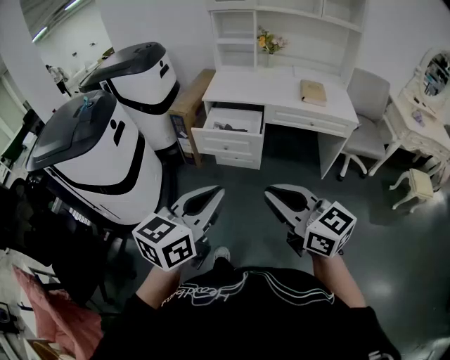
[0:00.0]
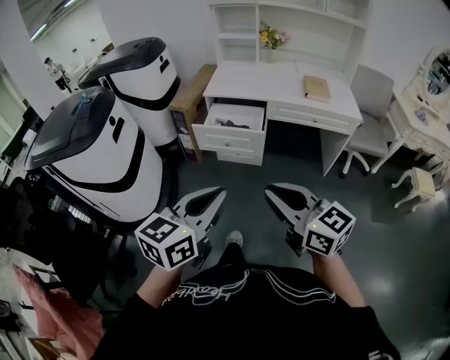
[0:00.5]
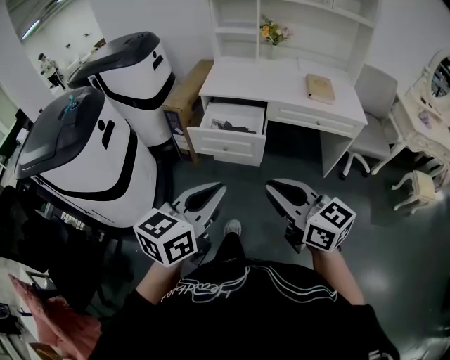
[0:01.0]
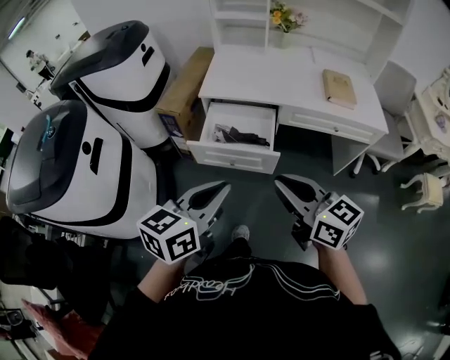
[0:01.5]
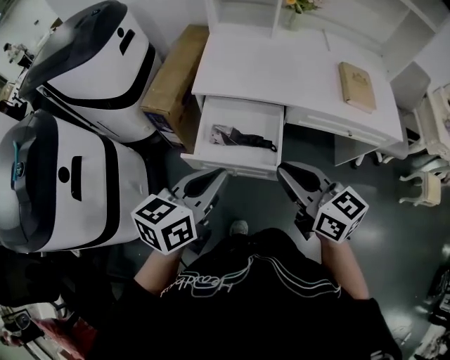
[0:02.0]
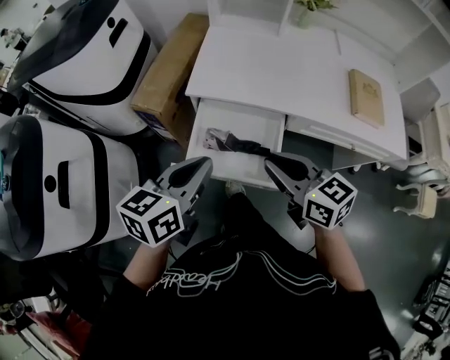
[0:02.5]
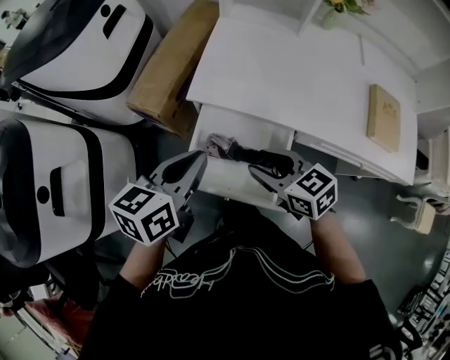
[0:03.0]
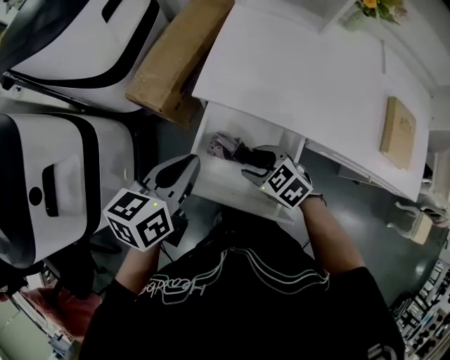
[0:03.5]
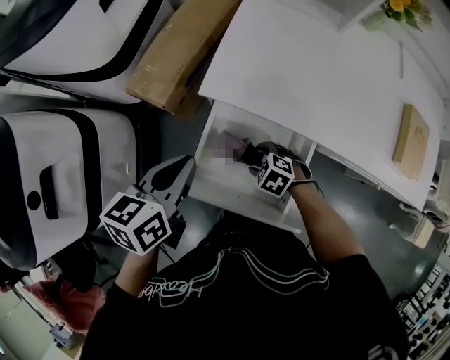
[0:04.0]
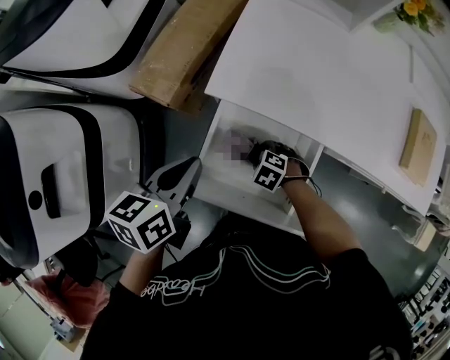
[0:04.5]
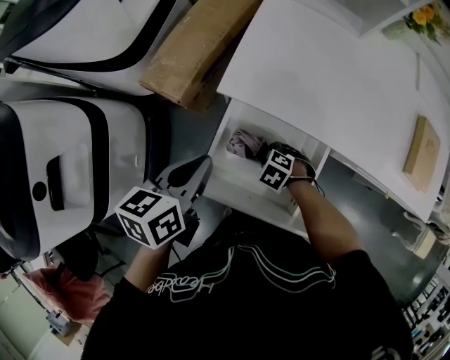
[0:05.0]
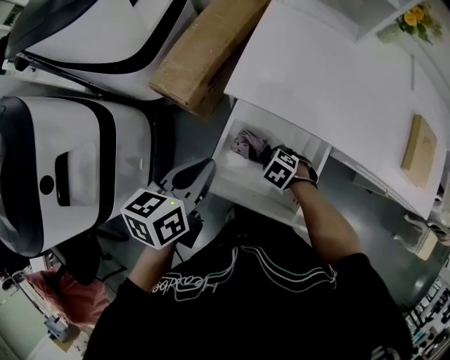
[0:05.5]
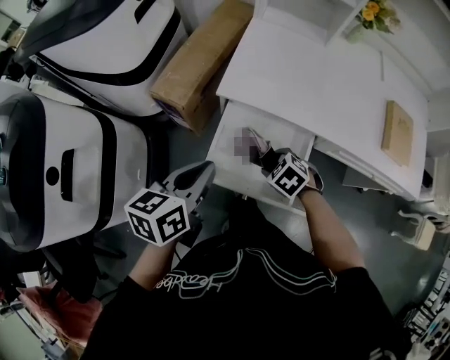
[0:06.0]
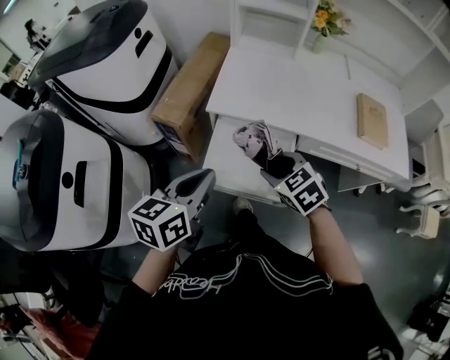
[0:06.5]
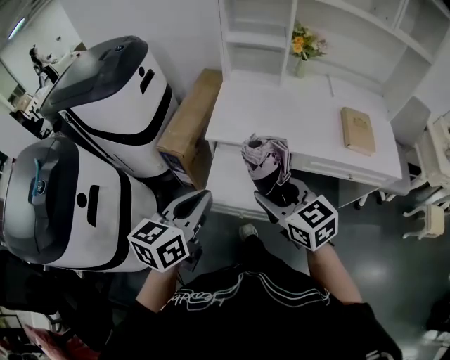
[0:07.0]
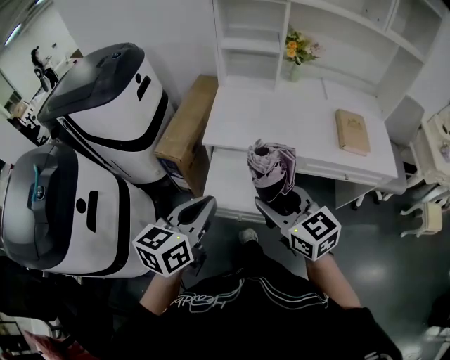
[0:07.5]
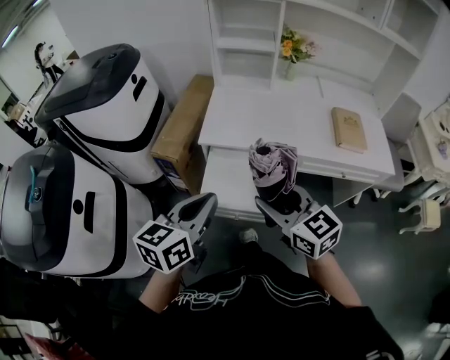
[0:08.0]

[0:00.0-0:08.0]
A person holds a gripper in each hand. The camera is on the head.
0:00.0 to 0:02.0: The two grippers travel together, forward, roughly 50 cm.
0:02.0 to 0:04.0: The left gripper ends up roughly 30 cm from where it was, and turns by about 30 degrees; the right gripper heads downward, covering about 40 cm, points its fingers some 60 degrees further downward, and opens.
0:04.0 to 0:06.0: The right gripper shifts roughly 10 cm upward. The left gripper ends up approximately 10 cm from where it was.
0:06.0 to 0:08.0: The left gripper goes roughly 20 cm upward and backward, and swivels roughly 20 degrees. The right gripper shifts some 35 cm upward and backward, and tilts its fingers roughly 60 degrees upward.

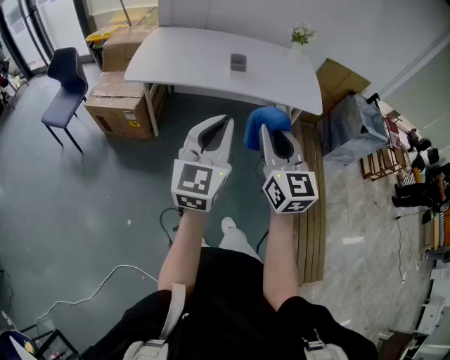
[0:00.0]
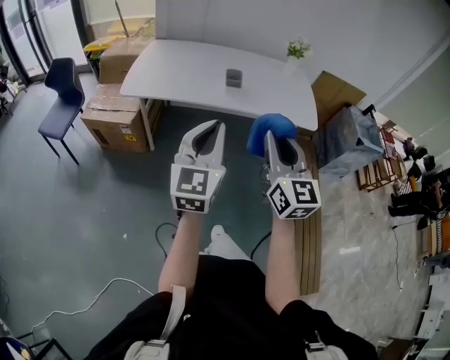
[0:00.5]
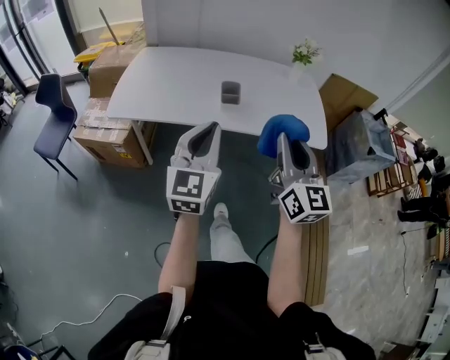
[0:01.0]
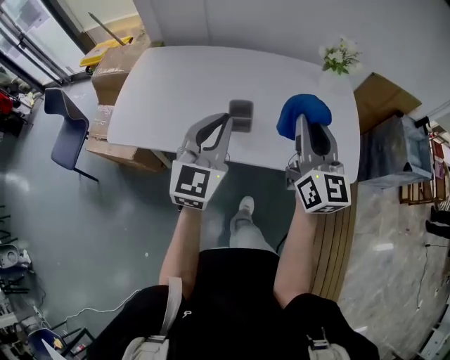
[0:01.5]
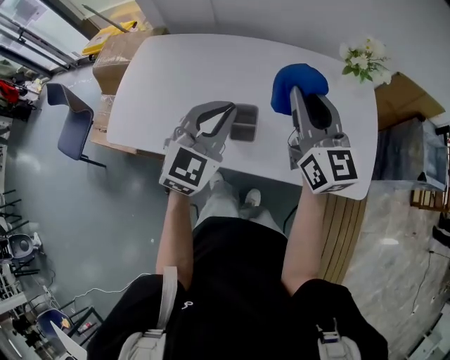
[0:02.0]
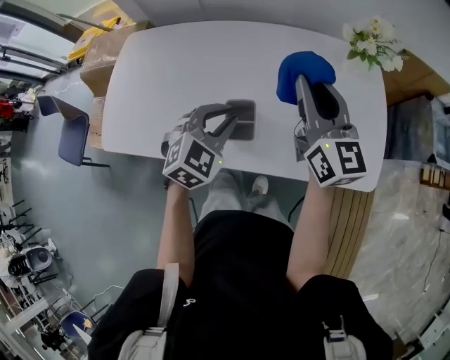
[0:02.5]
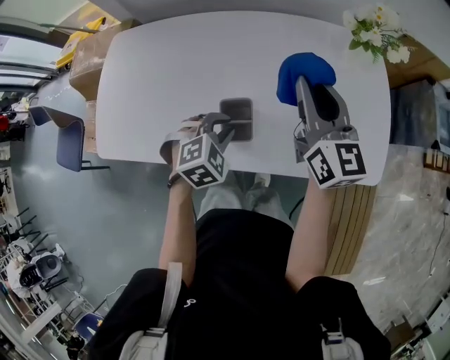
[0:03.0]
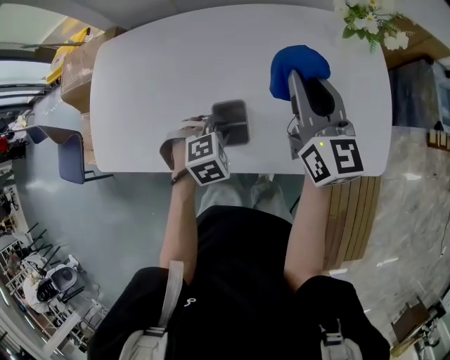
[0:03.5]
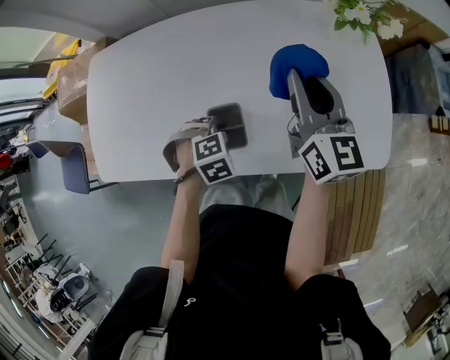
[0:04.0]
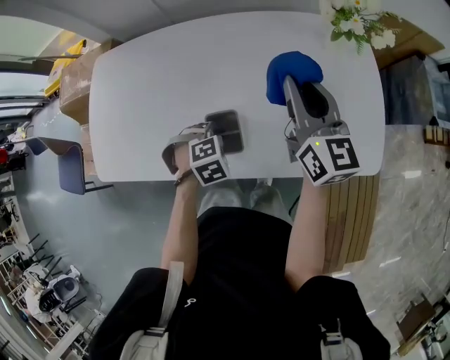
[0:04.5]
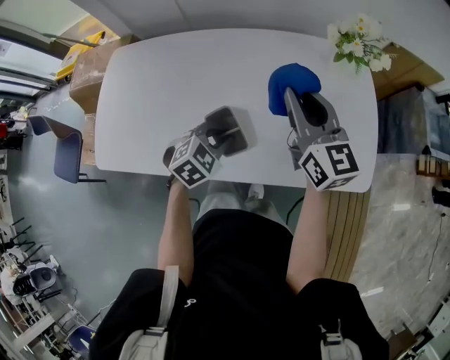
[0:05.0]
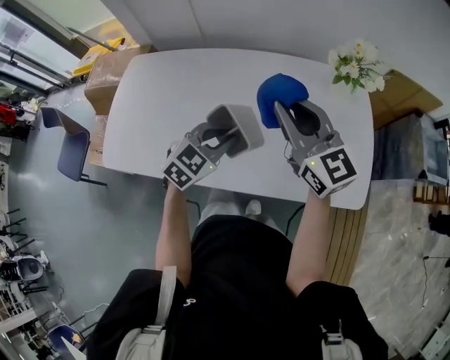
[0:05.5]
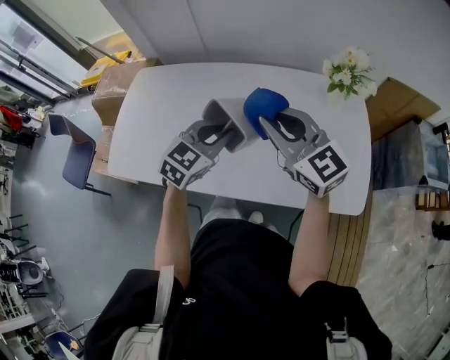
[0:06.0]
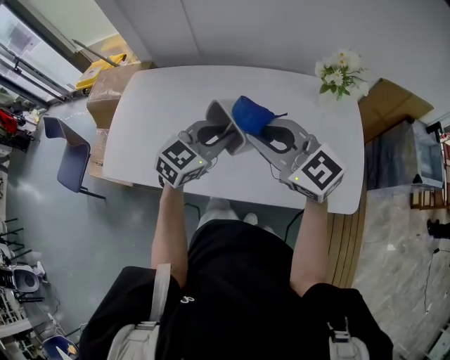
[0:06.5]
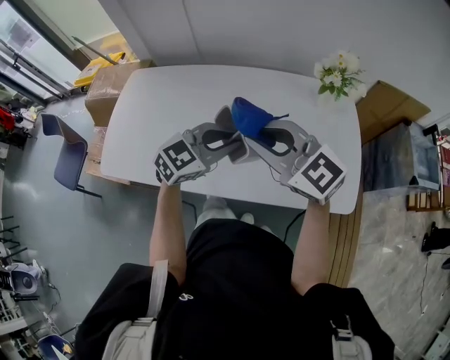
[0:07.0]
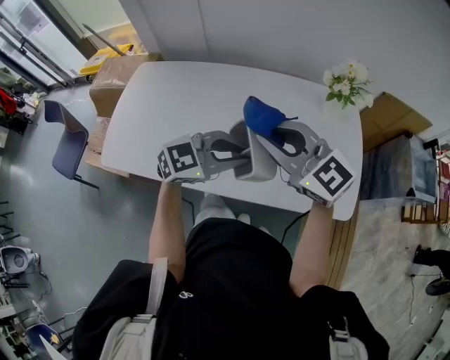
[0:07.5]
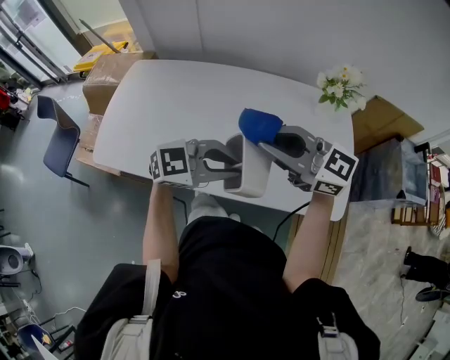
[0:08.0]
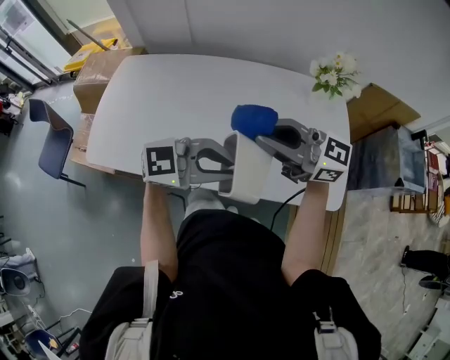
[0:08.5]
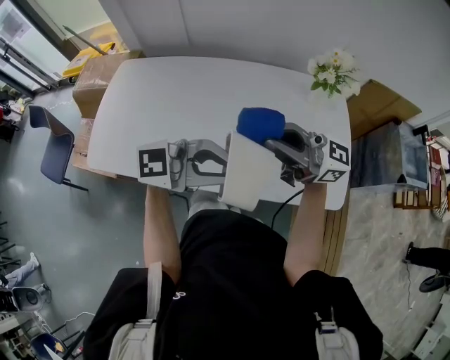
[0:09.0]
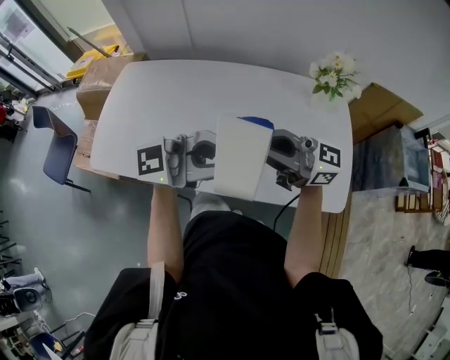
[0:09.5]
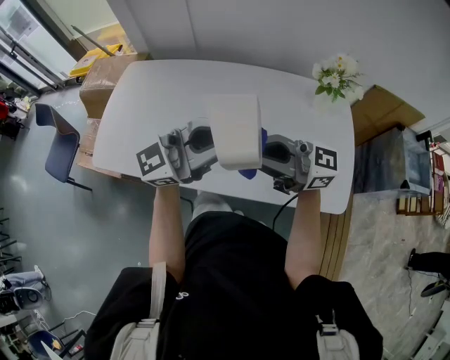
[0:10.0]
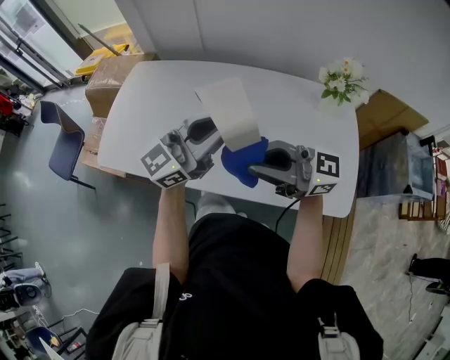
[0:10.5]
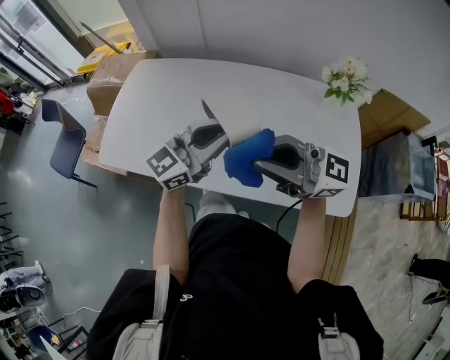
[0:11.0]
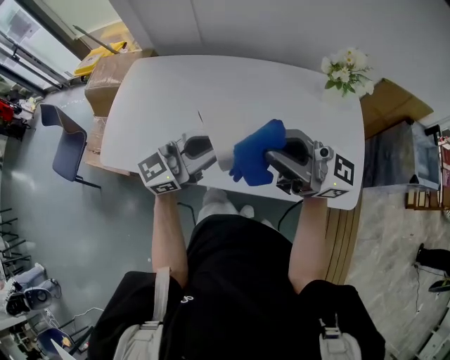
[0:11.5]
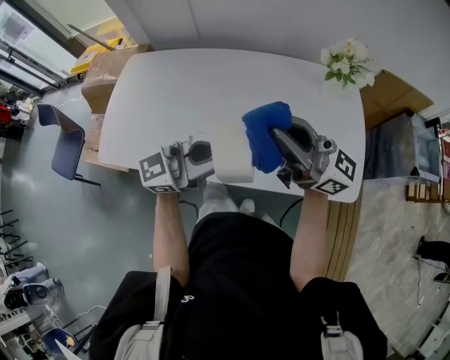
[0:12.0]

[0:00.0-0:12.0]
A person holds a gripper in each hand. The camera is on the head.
0:00.0 to 0:02.0: Both grippers are carried forward, approximately 60 cm. The left gripper changes its angle by about 30 degrees.
0:02.0 to 0:04.0: The left gripper shifts roughly 30 cm downward, and tilts its fingers some 60 degrees downward. The right gripper is displaced downward by about 10 cm.
0:04.0 to 0:06.0: The left gripper heads upward, covering roughly 20 cm, and points its fingers roughly 50 degrees further upward, while the right gripper moves some 15 cm, and turns by about 40 degrees.
0:06.0 to 0:08.0: The right gripper shifts by roughly 5 cm, and rotates about 30 degrees. The left gripper moves some 15 cm, and changes its angle by some 40 degrees.
0:08.0 to 0:10.0: The right gripper swivels some 20 degrees. The left gripper heads upward, covering roughly 10 cm, and angles its fingers upward, by some 40 degrees.
0:10.0 to 0:12.0: The right gripper changes place by about 5 cm, and changes its angle by some 20 degrees, while the left gripper travels downward by approximately 5 cm.

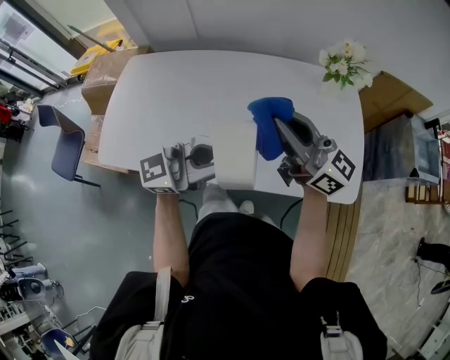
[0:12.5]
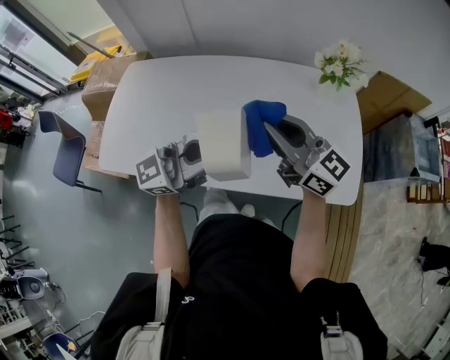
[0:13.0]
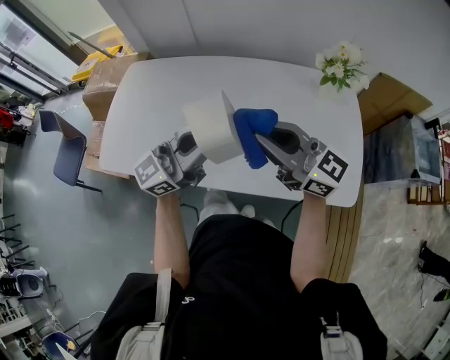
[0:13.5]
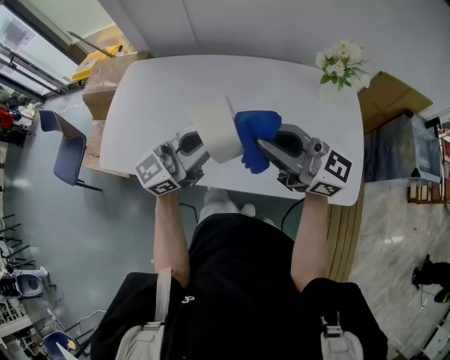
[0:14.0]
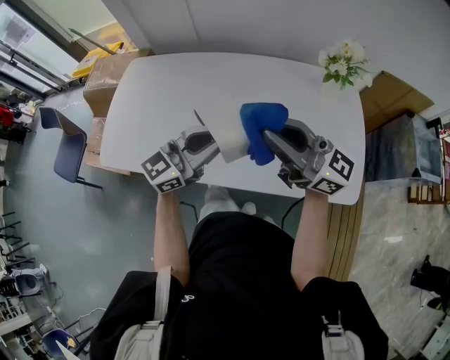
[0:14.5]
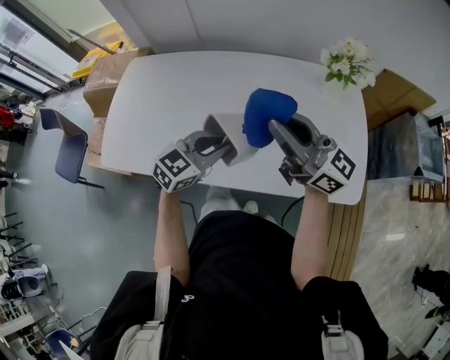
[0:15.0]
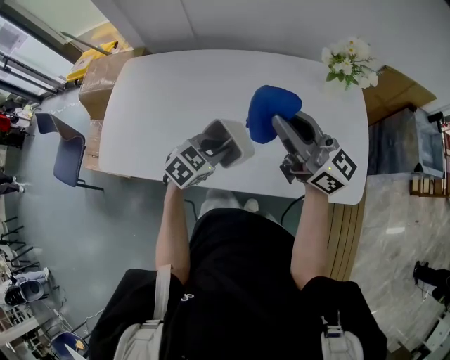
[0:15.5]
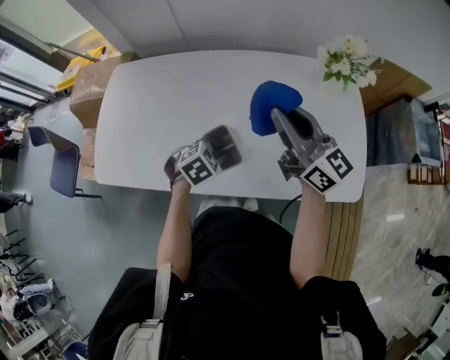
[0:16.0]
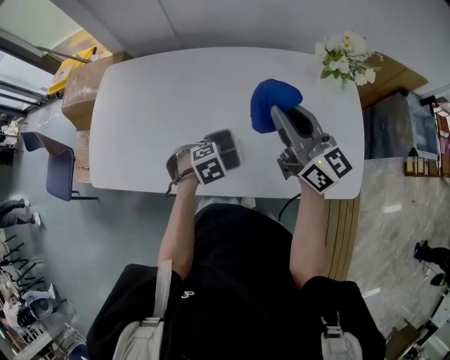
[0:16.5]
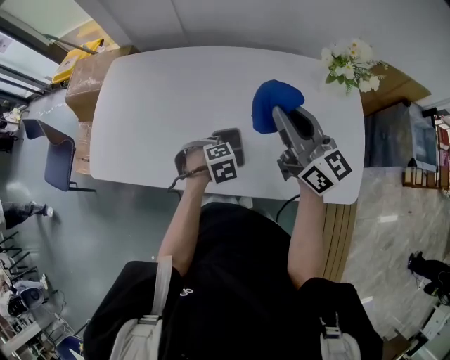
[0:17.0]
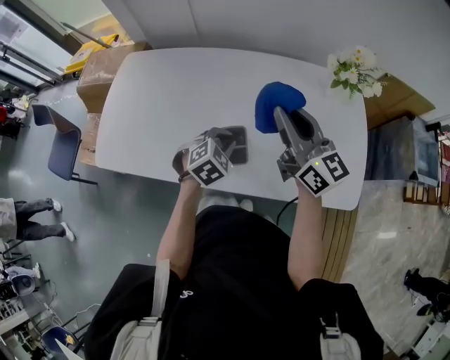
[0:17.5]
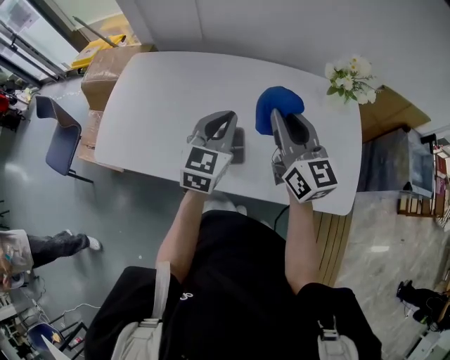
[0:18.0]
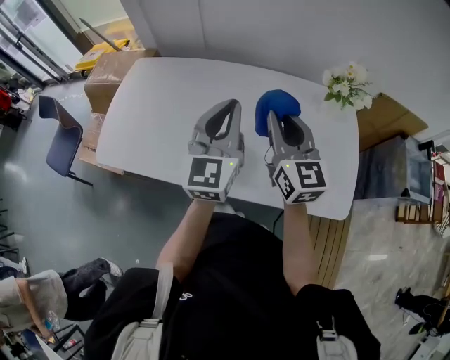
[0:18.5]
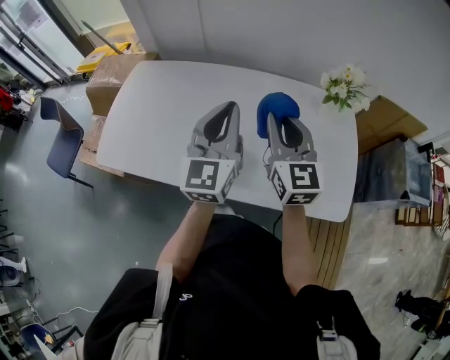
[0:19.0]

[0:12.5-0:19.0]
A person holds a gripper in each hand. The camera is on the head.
0:12.5 to 0:14.5: The left gripper ends up approximately 10 cm from where it was, and changes its angle by roughly 20 degrees.
0:14.5 to 0:17.0: The right gripper shifts by some 10 cm, and swivels approximately 30 degrees. The left gripper goes roughly 25 cm downward, and tips its fingers downward by about 80 degrees.
0:17.0 to 0:19.0: The left gripper heads upward, covering approximately 35 cm, and angles its fingers upward, by approximately 90 degrees. The right gripper rotates roughly 30 degrees.
